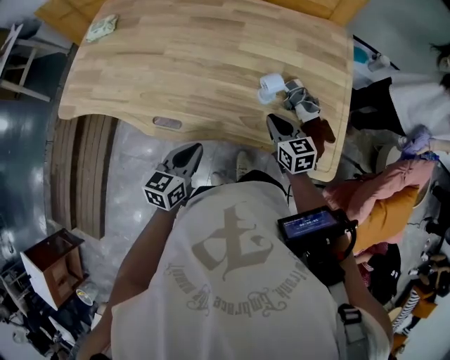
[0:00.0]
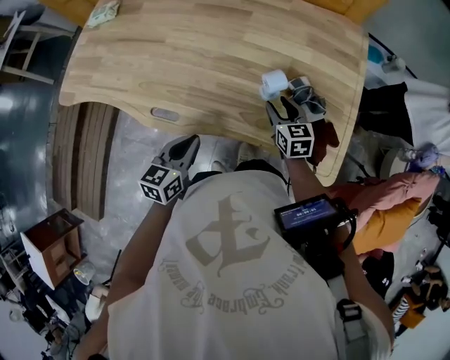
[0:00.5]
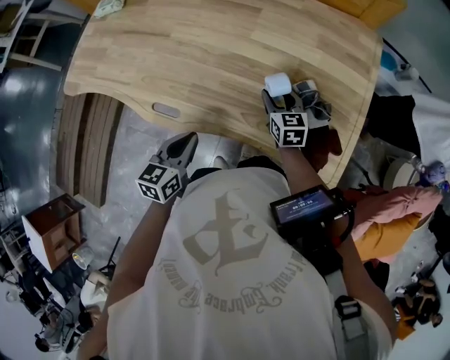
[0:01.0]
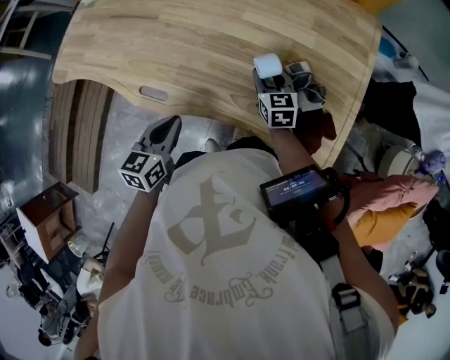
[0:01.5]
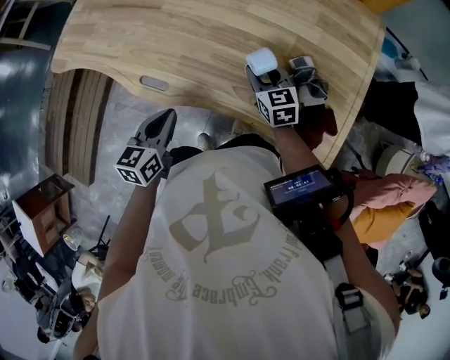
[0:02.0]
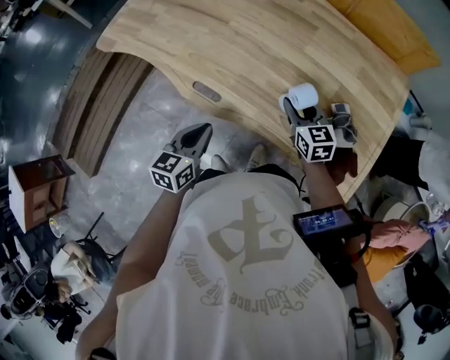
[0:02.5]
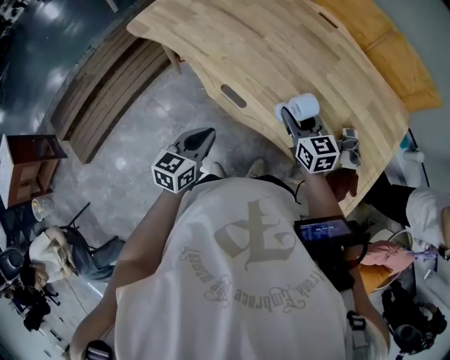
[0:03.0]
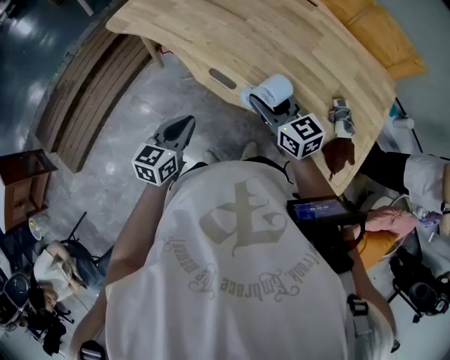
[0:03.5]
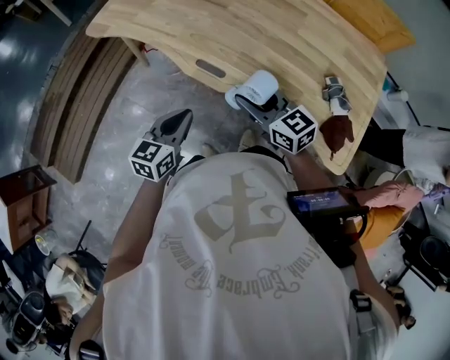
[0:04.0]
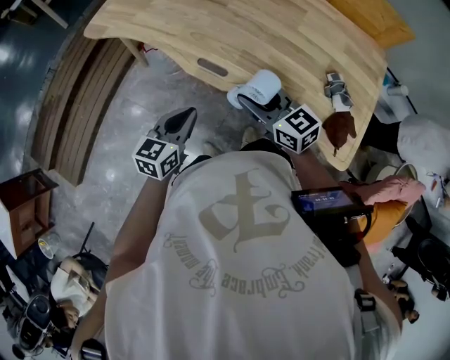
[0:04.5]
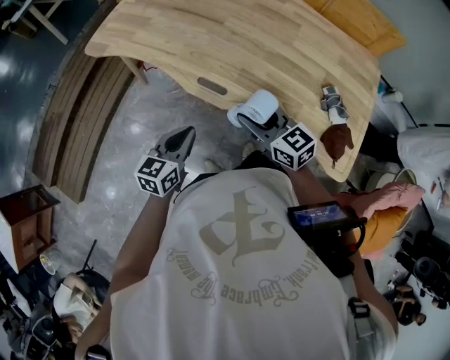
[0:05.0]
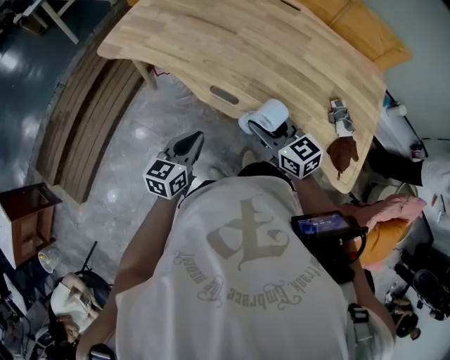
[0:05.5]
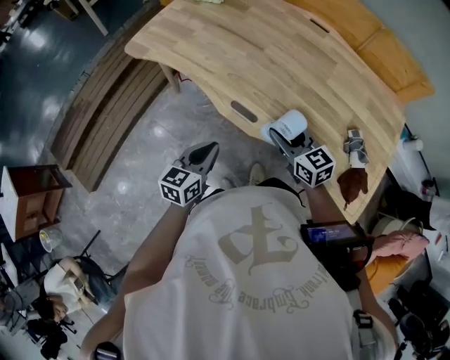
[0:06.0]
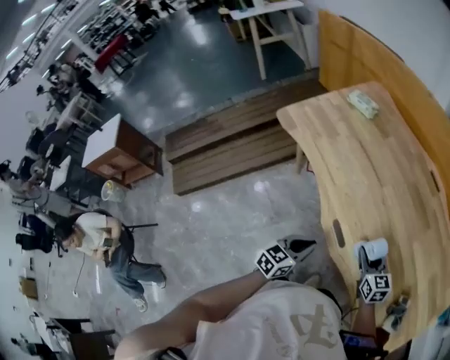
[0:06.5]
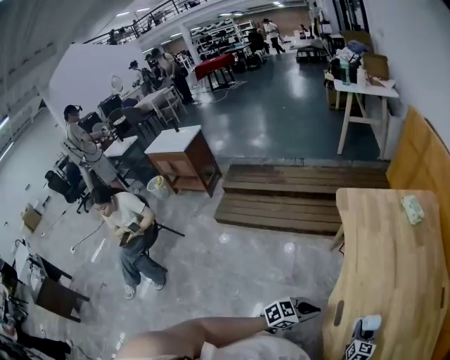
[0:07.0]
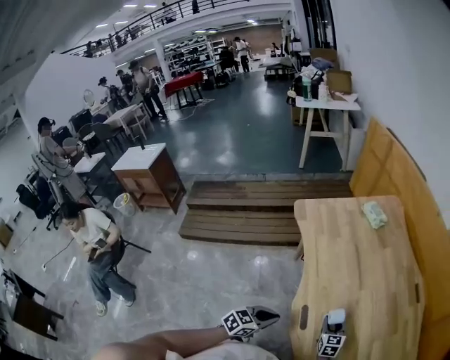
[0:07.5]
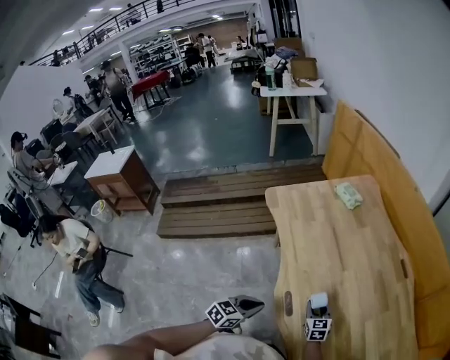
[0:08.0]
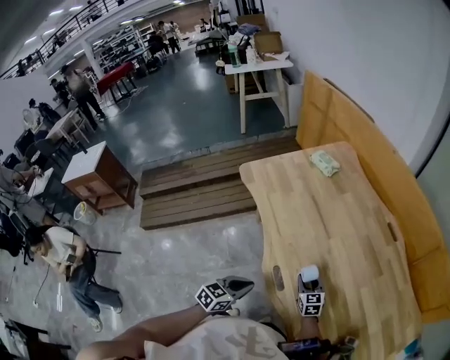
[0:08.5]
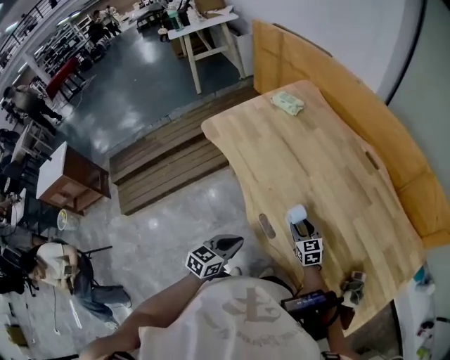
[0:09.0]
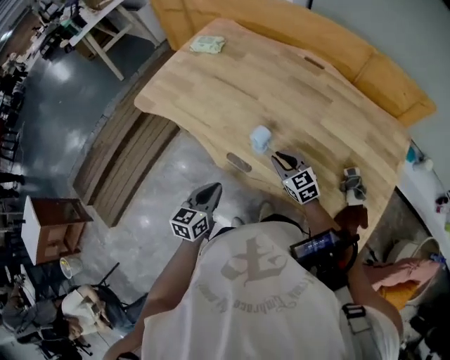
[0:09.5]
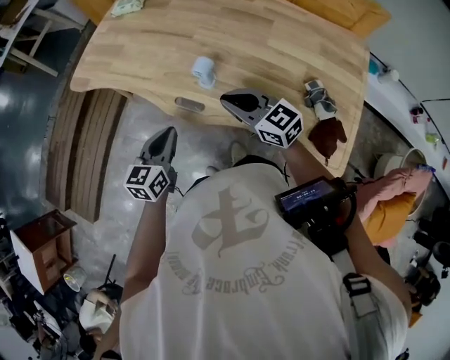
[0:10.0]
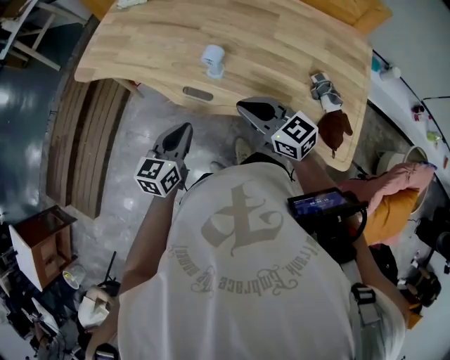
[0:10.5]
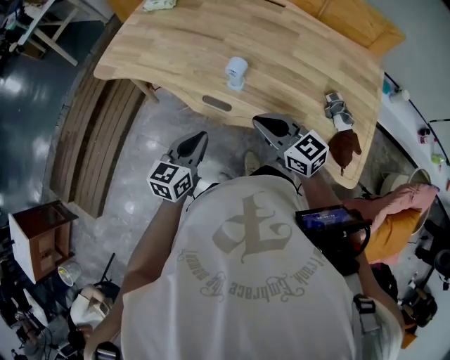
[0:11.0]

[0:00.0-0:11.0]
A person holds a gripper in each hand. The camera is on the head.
0:00.0 to 0:02.0: The right gripper goes roughly 10 cm forward, and opens.
0:02.0 to 0:03.5: The right gripper is displaced to the left and upward by roughly 30 cm, and turns by about 30 degrees. The left gripper moves to the left, approximately 20 cm.
0:03.5 to 0:05.5: The grippers move only a little.
0:05.5 to 0:07.5: The right gripper is displaced forward and downward by approximately 30 cm; the left gripper shifts some 5 cm forward, and turns by approximately 20 degrees.
0:07.5 to 0:09.0: The grippers move only a little.
0:09.0 to 0:11.0: The left gripper shifts by about 5 cm, and turns by approximately 20 degrees, while the right gripper heads backward and upward, covering some 25 cm, and closes its fingers.

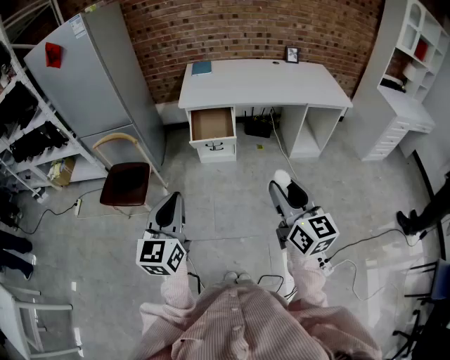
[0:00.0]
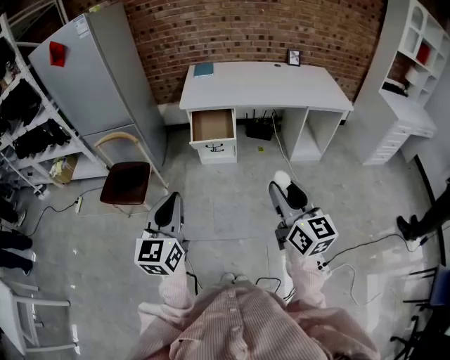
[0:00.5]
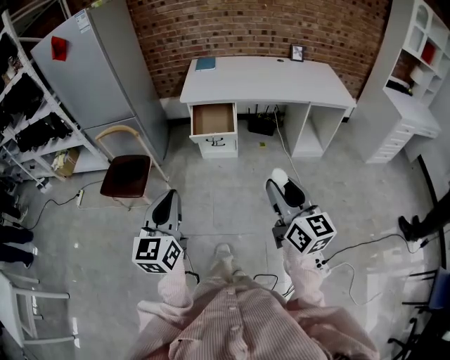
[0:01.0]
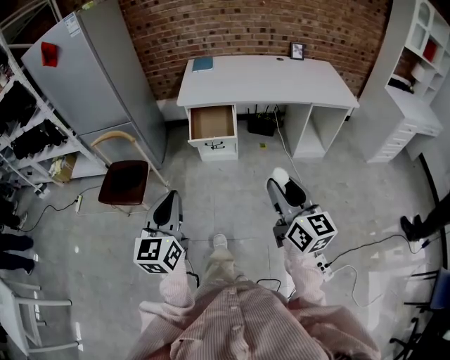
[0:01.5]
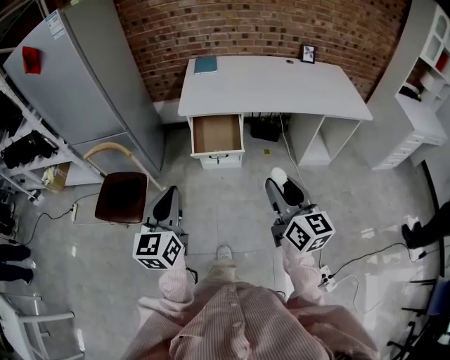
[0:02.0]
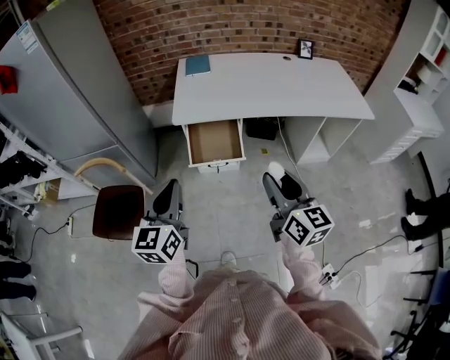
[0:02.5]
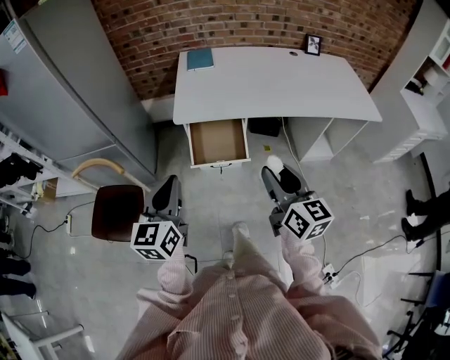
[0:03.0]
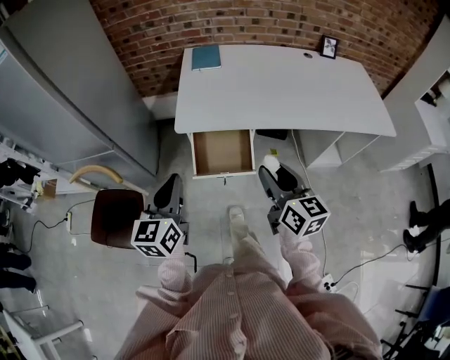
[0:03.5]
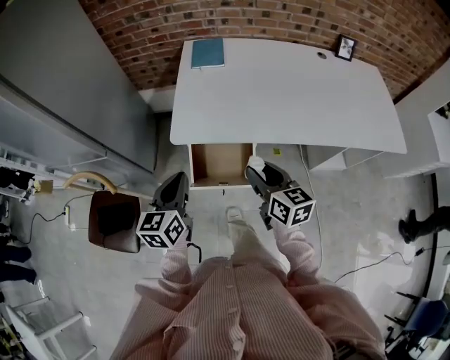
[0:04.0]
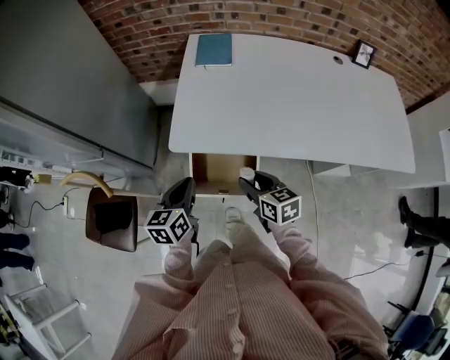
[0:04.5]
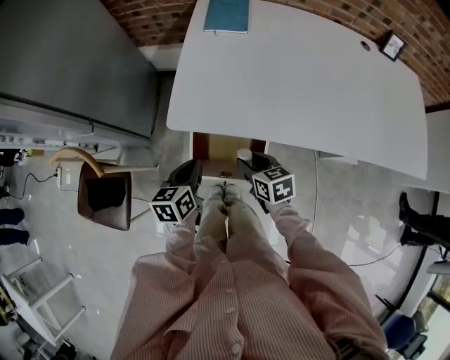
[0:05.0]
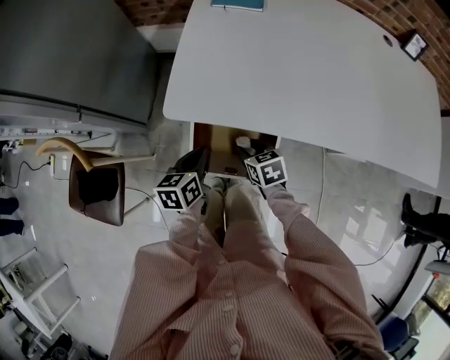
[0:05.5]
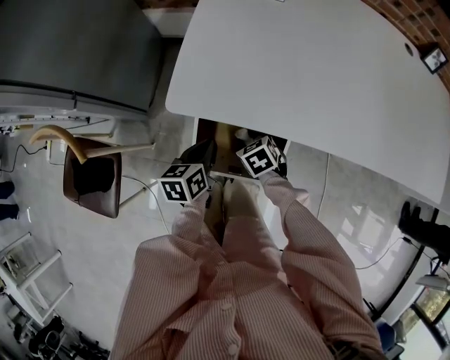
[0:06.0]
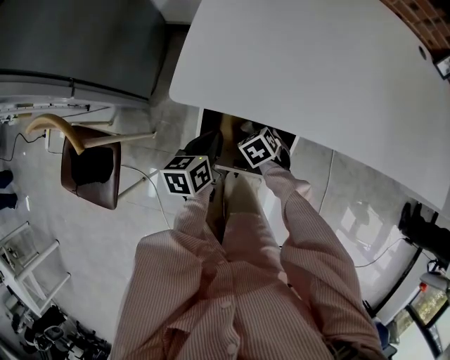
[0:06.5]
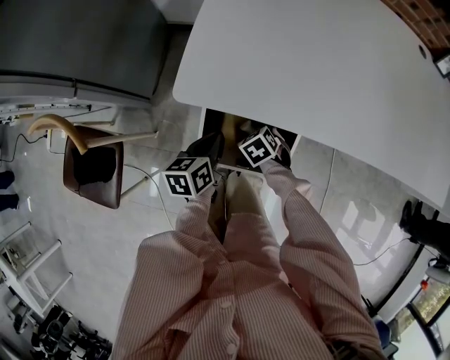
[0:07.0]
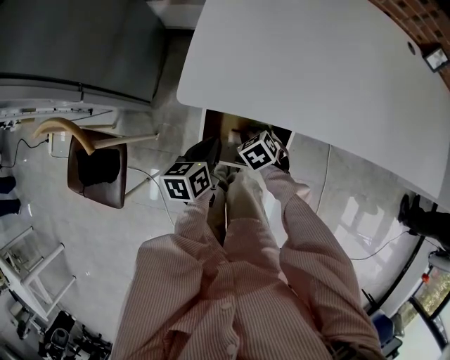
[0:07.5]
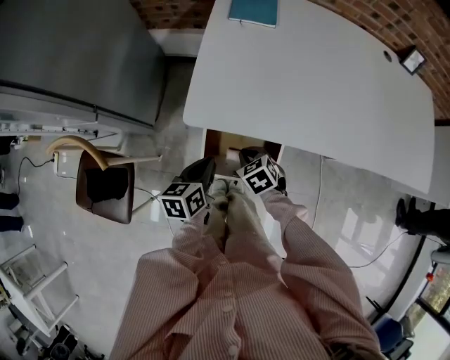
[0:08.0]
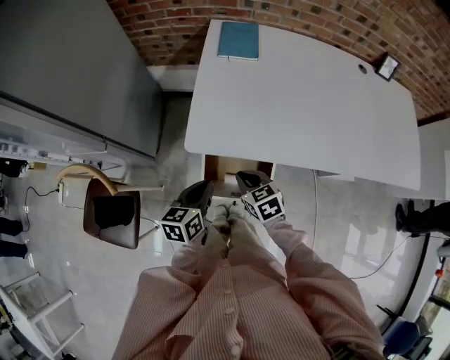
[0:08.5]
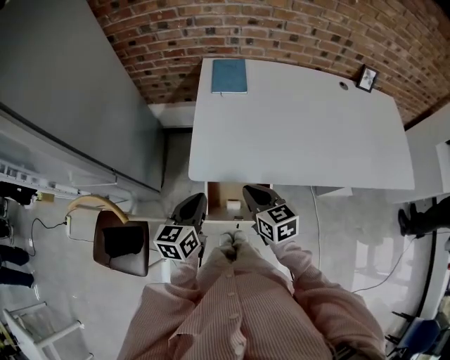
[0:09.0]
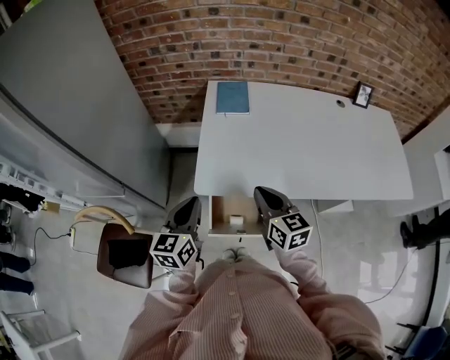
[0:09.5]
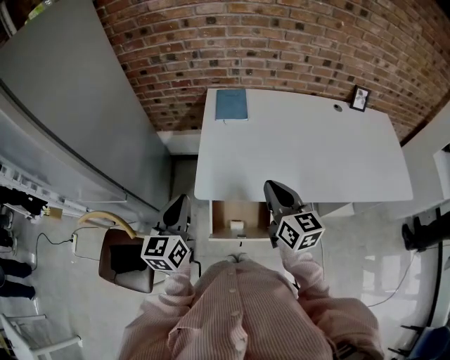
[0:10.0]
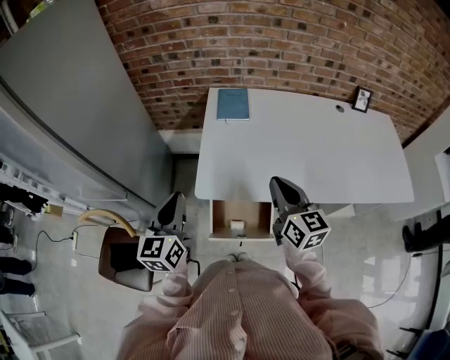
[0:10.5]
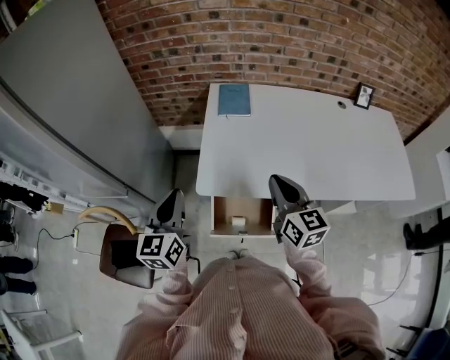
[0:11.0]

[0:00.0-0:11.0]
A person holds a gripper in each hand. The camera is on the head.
0:00.0 to 0:02.0: Both grippers move forward, about 20 cm.
0:02.0 to 0:03.5: Both grippers move forward, approximately 25 cm.
0:03.5 to 0:05.5: Both grippers travel together downward and forward, approximately 40 cm. The right gripper points its fingers some 40 degrees further downward; the left gripper swivels approximately 30 degrees.
0:05.5 to 0:07.5: The right gripper moves downward, about 5 cm, and rotates some 30 degrees.
0:07.5 to 0:09.0: The grippers both shift upward by roughly 25 cm. The right gripper tilts its fingers about 40 degrees upward, and closes up. The left gripper turns by roughly 20 degrees.
0:09.0 to 0:11.0: The right gripper is displaced upward and to the right by approximately 15 cm, and changes its angle by approximately 20 degrees. The left gripper travels upward and to the left by about 15 cm, and changes its angle by about 20 degrees.

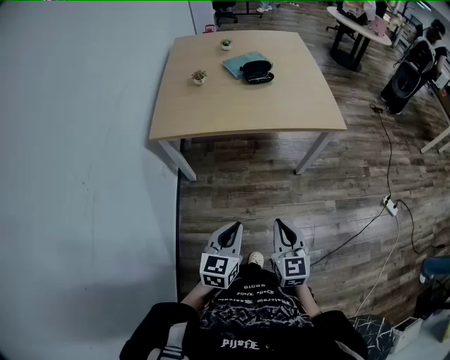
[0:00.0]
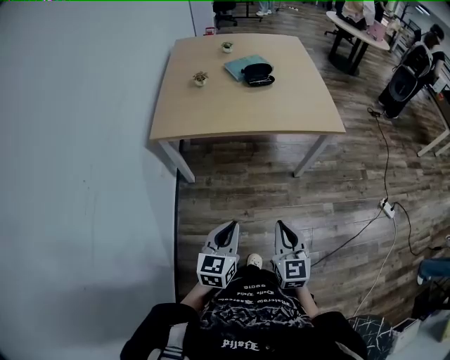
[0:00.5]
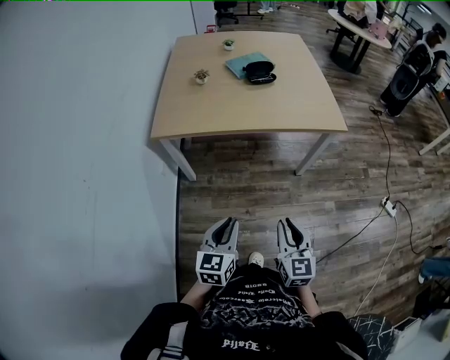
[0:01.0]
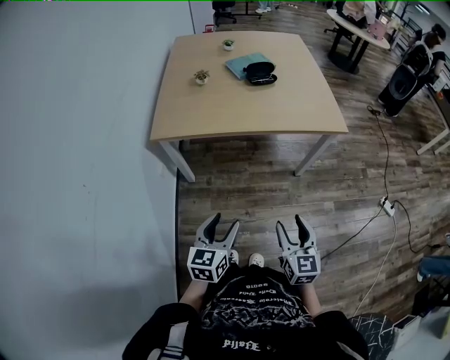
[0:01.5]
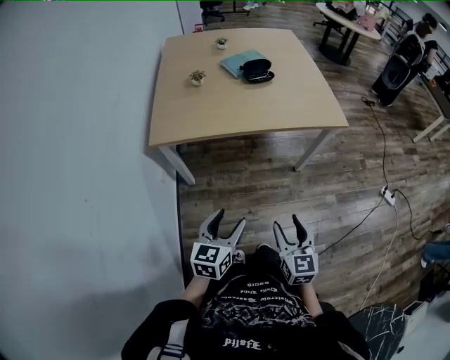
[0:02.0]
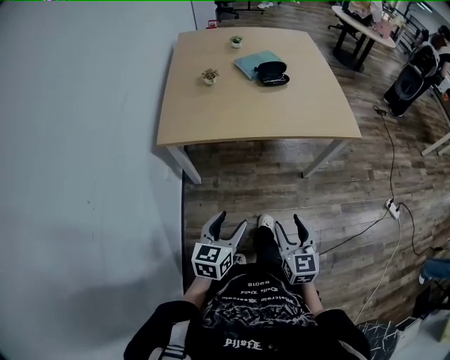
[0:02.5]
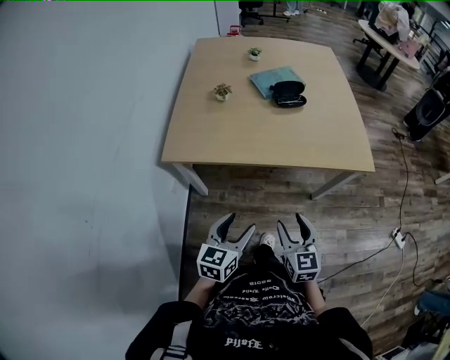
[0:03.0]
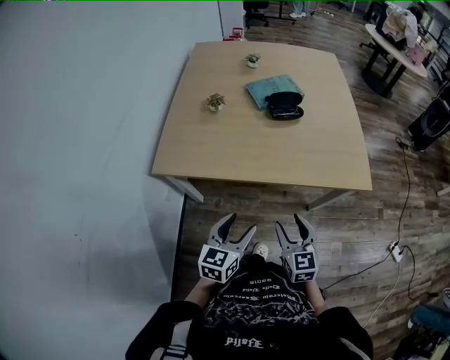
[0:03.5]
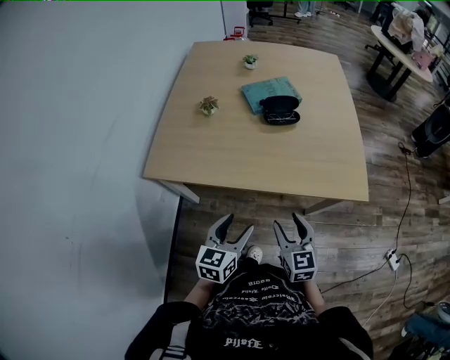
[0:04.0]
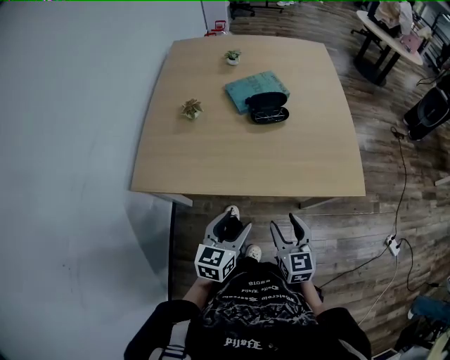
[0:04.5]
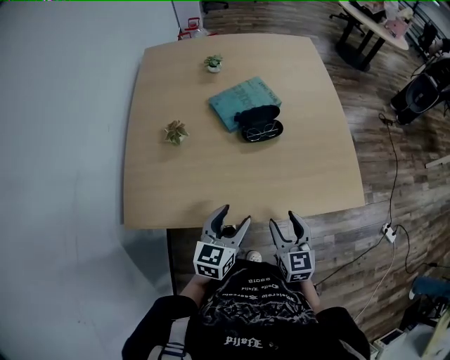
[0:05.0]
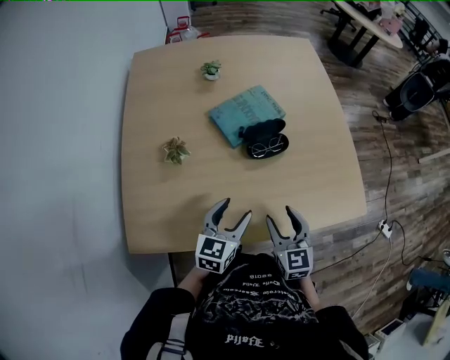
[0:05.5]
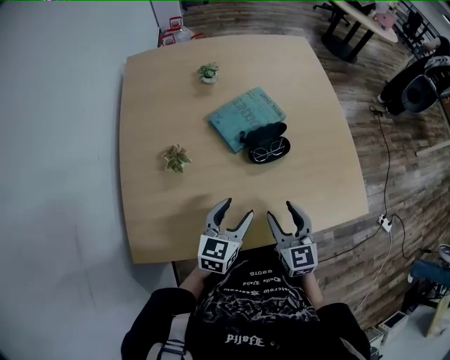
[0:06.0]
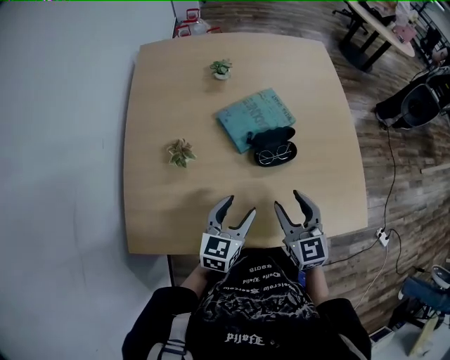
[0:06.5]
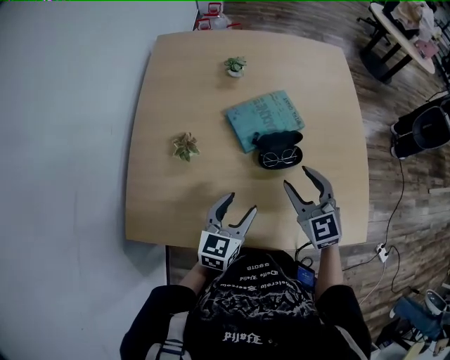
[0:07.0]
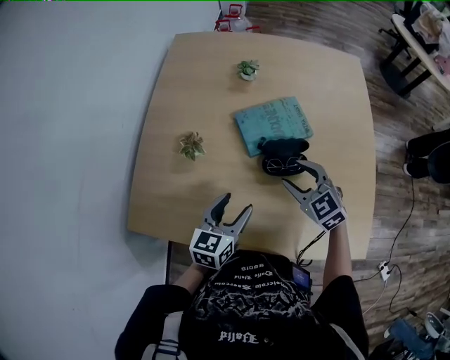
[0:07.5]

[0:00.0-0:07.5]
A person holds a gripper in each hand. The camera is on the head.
0:00.0 to 0:02.0: The right gripper ends up roughly 5 cm from where it was, and opens up. Meanwhile the left gripper is displaced to the left by approximately 10 cm, and opens.
0:02.0 to 0:04.0: Both grippers move forward, roughly 30 cm.
0:04.0 to 0:05.5: Both grippers move forward, approximately 25 cm.
0:05.5 to 0:07.5: The left gripper moves roughly 5 cm. The right gripper moves approximately 20 cm, and rotates roughly 50 degrees.
